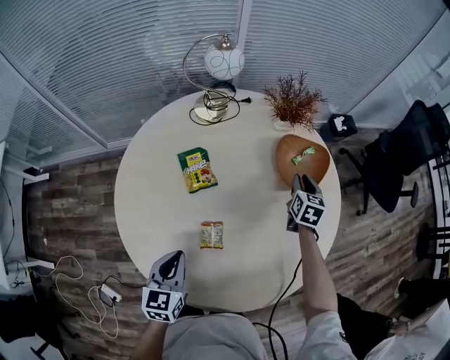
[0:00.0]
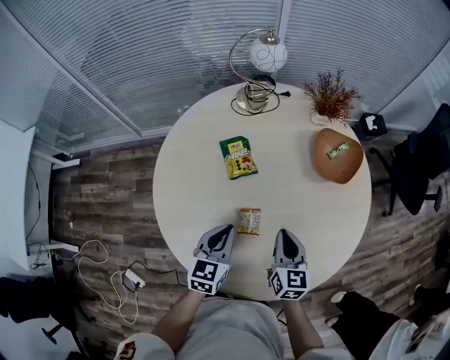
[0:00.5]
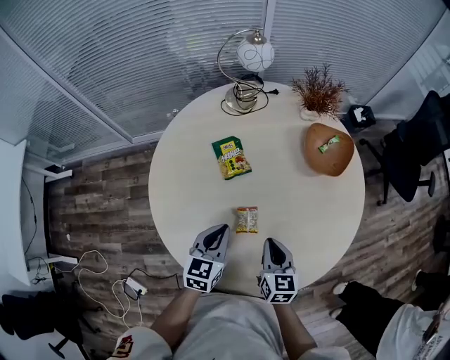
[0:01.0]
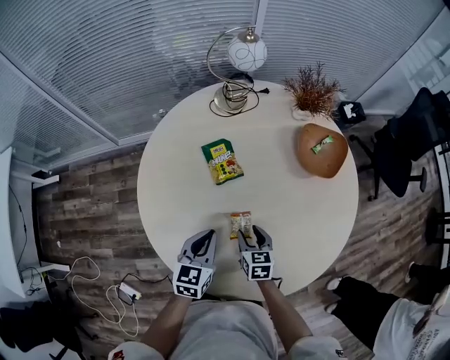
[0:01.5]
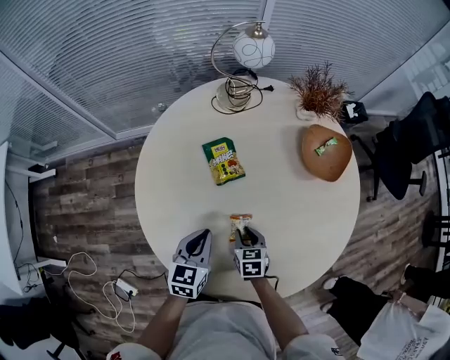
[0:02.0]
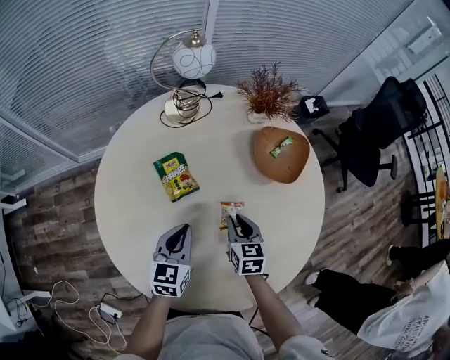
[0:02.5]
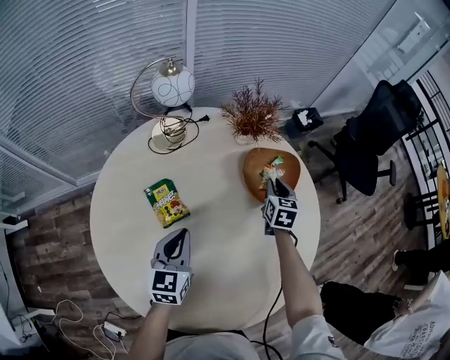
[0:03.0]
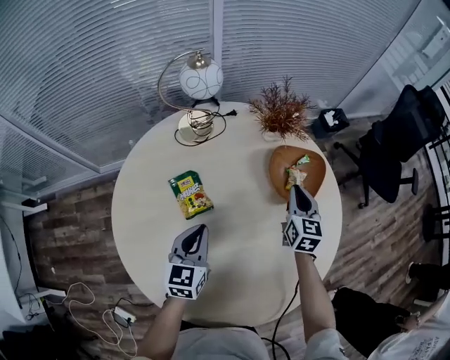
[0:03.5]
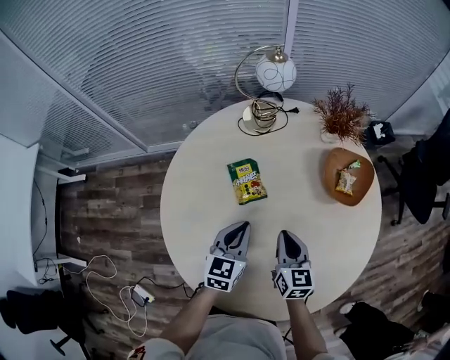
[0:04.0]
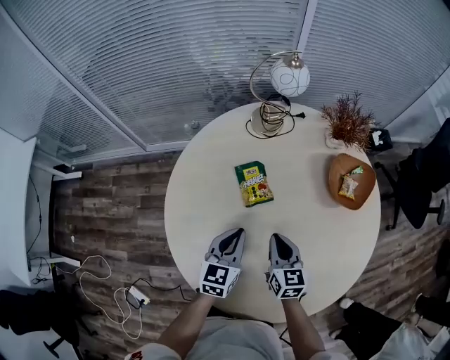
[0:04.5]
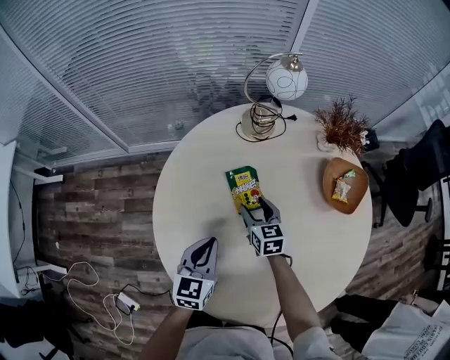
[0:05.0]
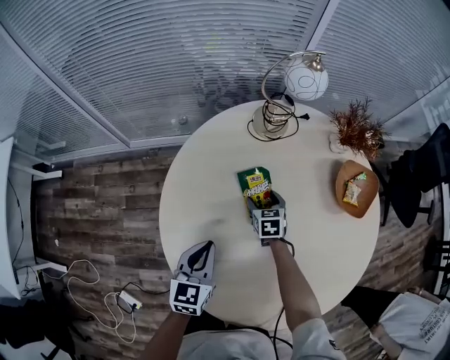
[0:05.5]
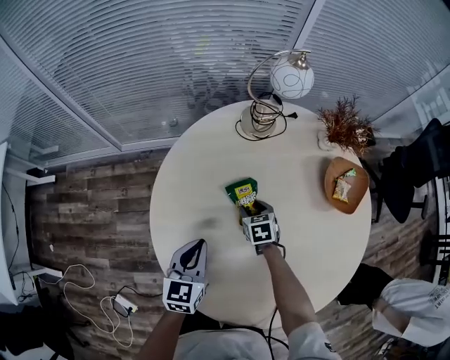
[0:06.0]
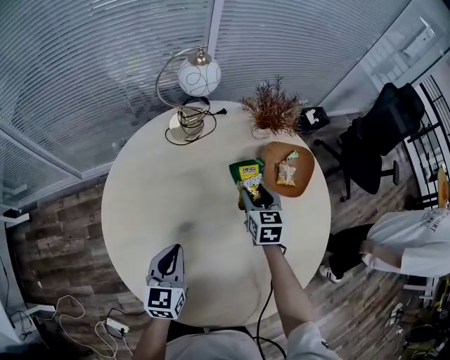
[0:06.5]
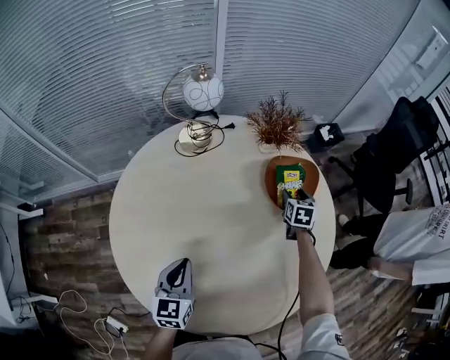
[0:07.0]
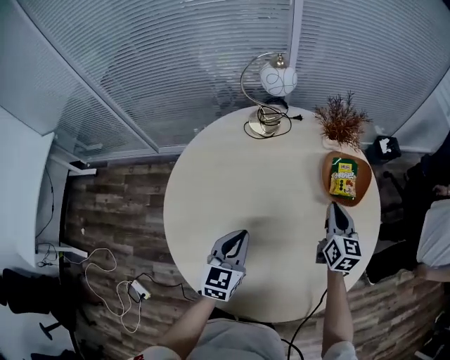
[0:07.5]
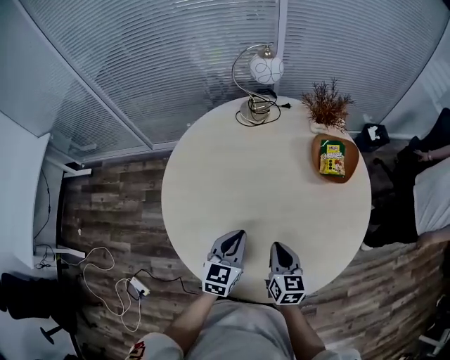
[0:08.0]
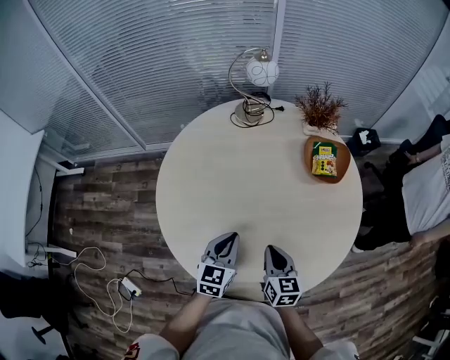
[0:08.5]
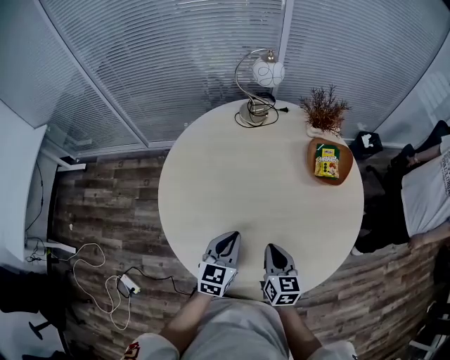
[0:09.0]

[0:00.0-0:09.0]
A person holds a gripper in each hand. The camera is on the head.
0:00.0 to 0:02.0: The left gripper ends up approximately 5 cm from where it was. Meanwhile the right gripper shifts some 35 cm to the left, backward and downward, and rotates some 30 degrees.
0:02.0 to 0:04.5: The right gripper goes about 10 cm upward, reaches approximately 30 cm forward, then returns, and turns by about 30 degrees. The left gripper heads forward, covering roughly 5 cm.
0:04.5 to 0:07.0: The right gripper travels to the right and forward by roughly 35 cm, turns by roughly 30 degrees, and opens; the left gripper travels to the left and back again, about 10 cm each way.
0:07.0 to 0:09.0: The right gripper heads backward and to the left, covering about 40 cm, changes its angle by approximately 30 degrees, and closes; the left gripper moves backward, some 10 cm.

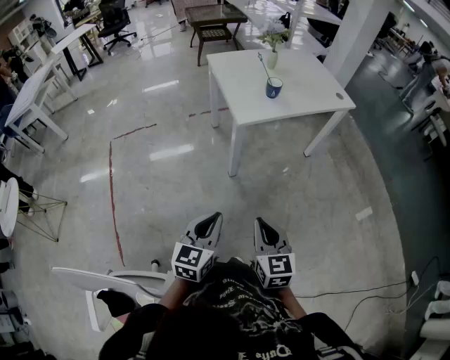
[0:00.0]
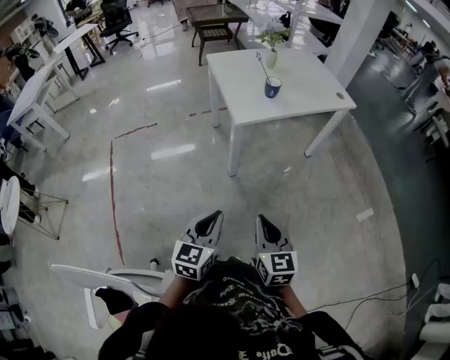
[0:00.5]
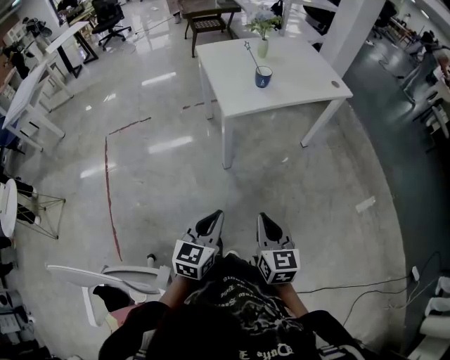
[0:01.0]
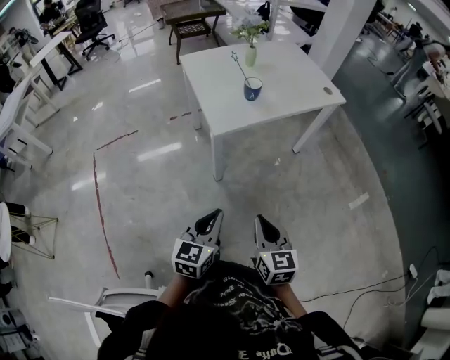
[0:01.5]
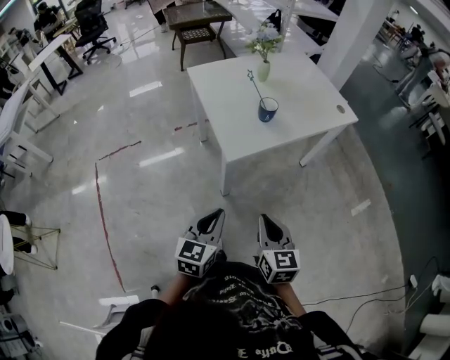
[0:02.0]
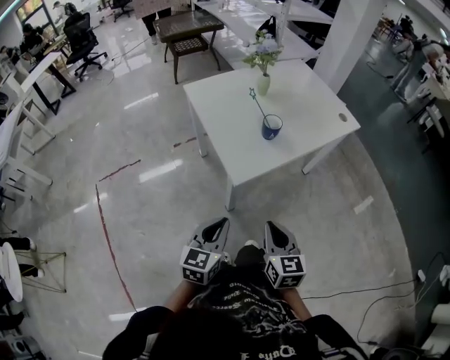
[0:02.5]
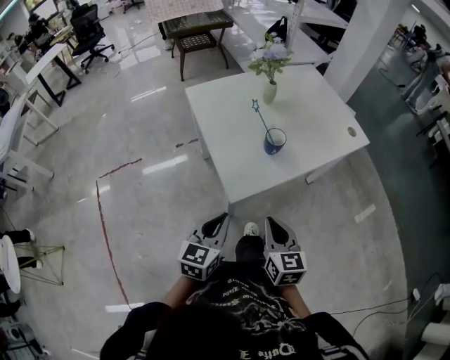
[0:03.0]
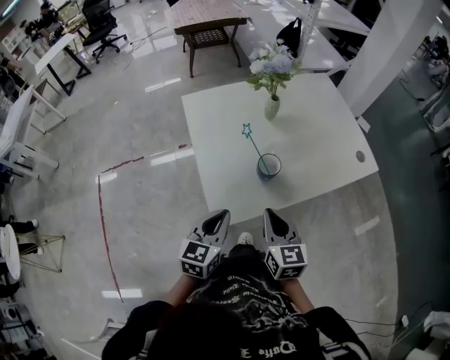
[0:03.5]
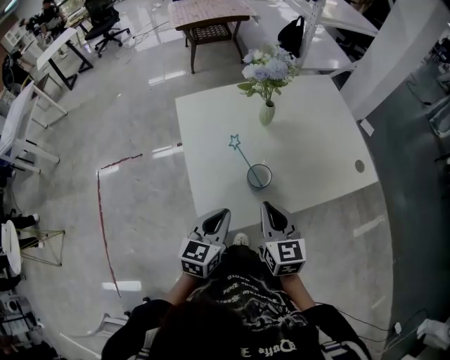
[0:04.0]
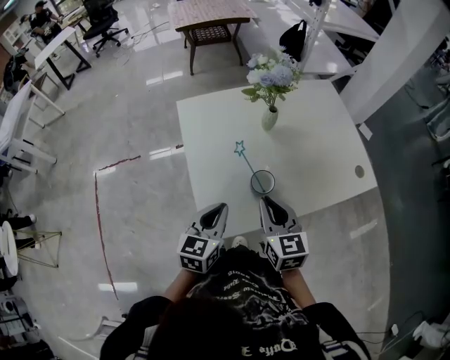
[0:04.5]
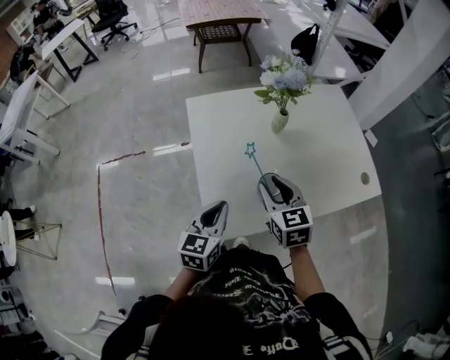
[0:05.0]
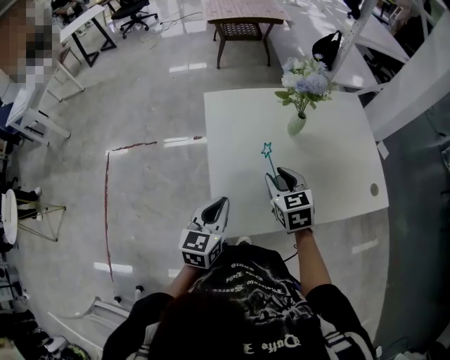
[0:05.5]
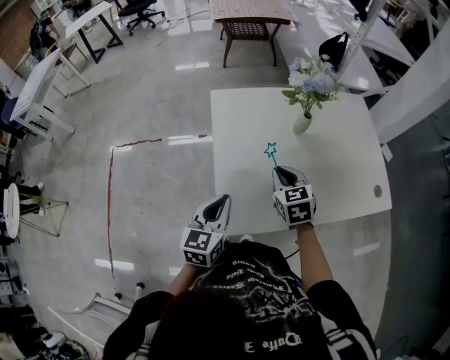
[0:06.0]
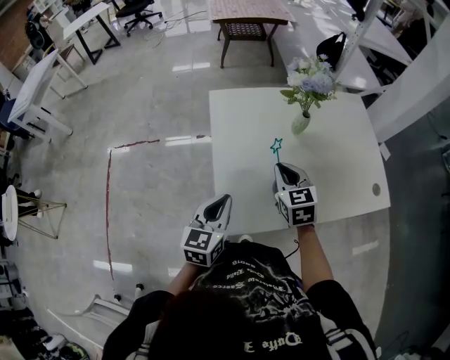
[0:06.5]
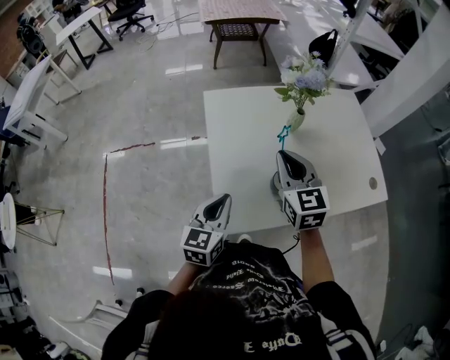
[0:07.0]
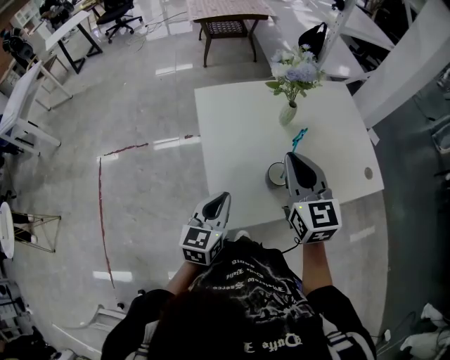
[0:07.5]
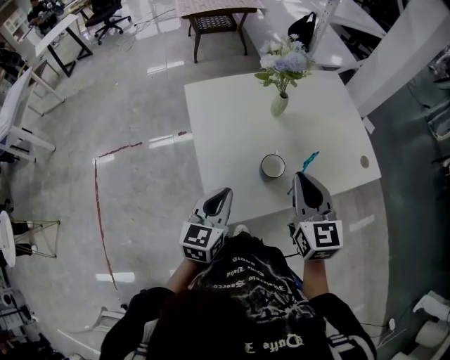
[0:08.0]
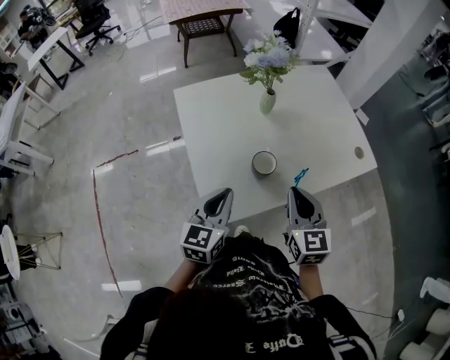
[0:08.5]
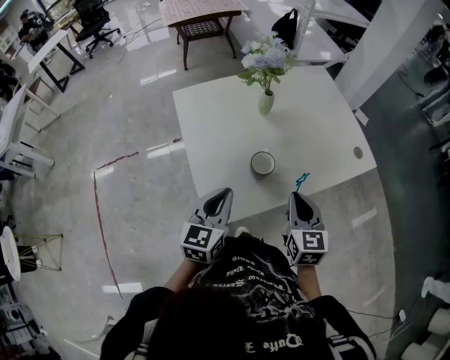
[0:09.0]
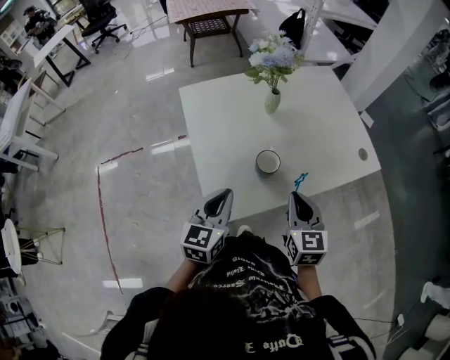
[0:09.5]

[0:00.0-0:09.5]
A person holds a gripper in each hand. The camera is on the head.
0:00.0 to 0:02.0: Both grippers travel together forward, some 30 cm.
0:02.0 to 0:04.0: The pair of grippers is taken forward, roughly 50 cm.
0:04.0 to 0:05.5: The left gripper heads to the left, covering roughly 10 cm. The right gripper is displaced forward and to the left by roughly 15 cm, swivels approximately 20 degrees, and opens its fingers.
0:05.5 to 0:07.5: The right gripper moves upward, about 15 cm, turns by about 30 degrees, and closes up.
0:07.5 to 0:09.5: The right gripper travels downward, to the right and backward by about 20 cm. The left gripper travels to the right by roughly 5 cm.

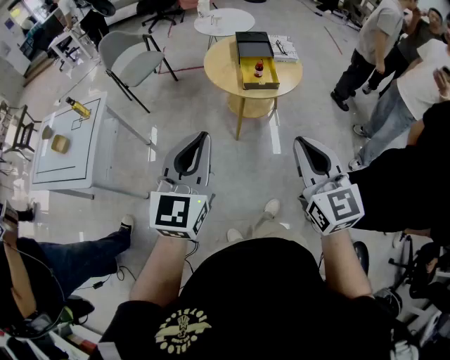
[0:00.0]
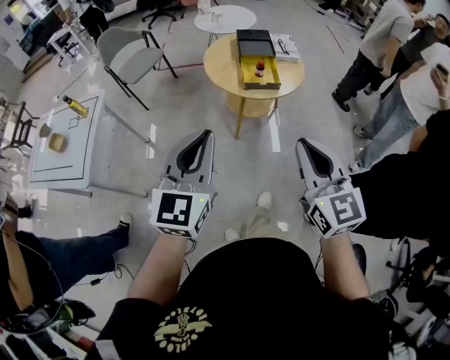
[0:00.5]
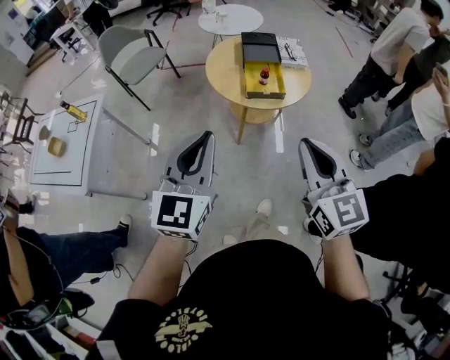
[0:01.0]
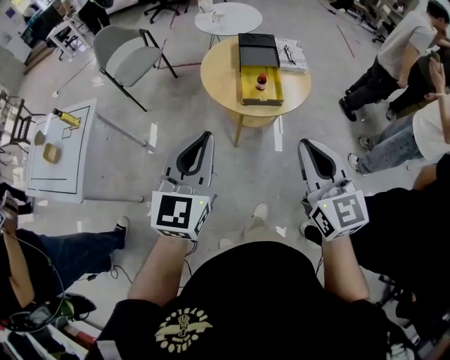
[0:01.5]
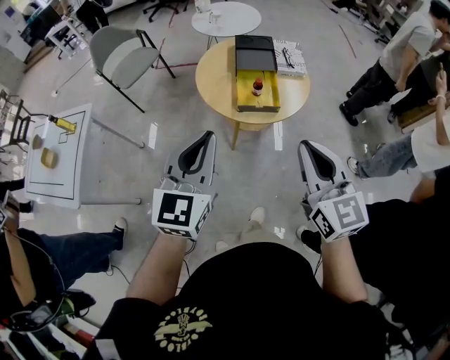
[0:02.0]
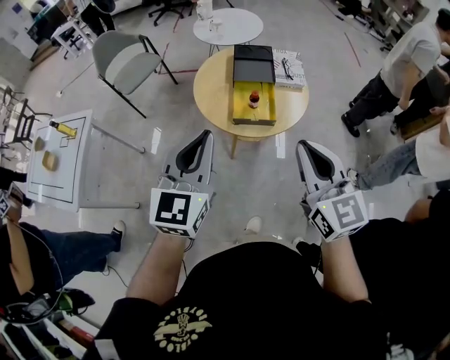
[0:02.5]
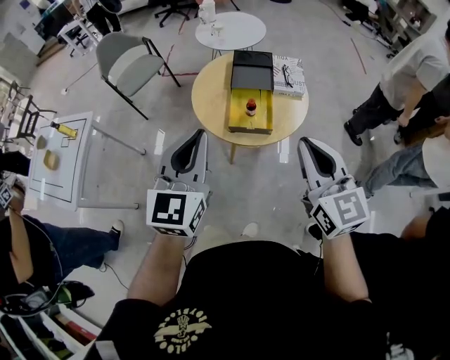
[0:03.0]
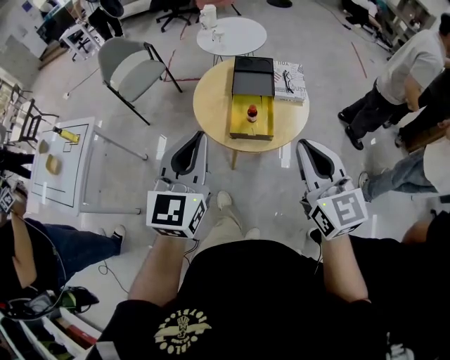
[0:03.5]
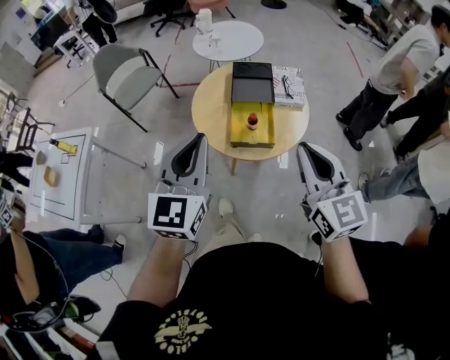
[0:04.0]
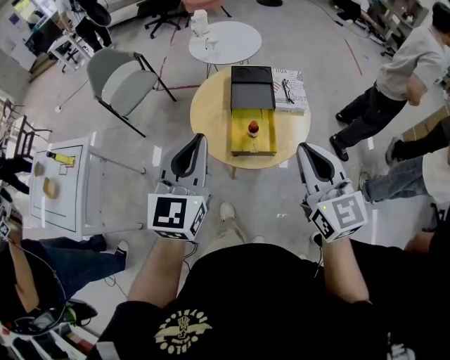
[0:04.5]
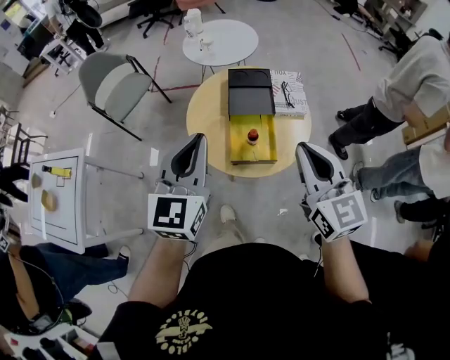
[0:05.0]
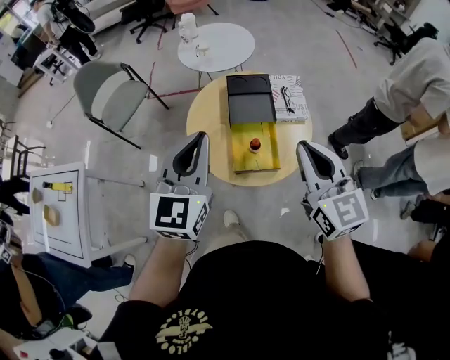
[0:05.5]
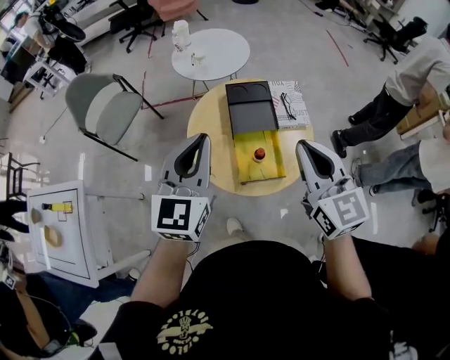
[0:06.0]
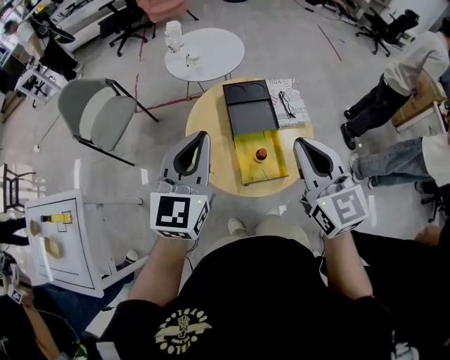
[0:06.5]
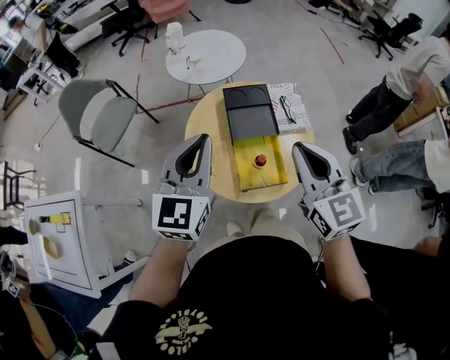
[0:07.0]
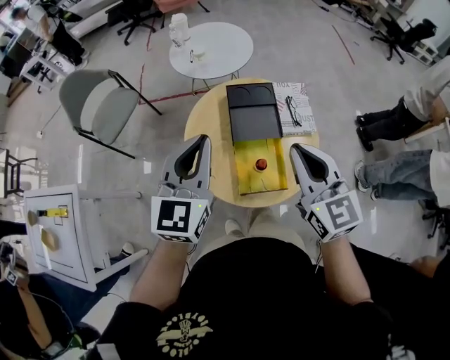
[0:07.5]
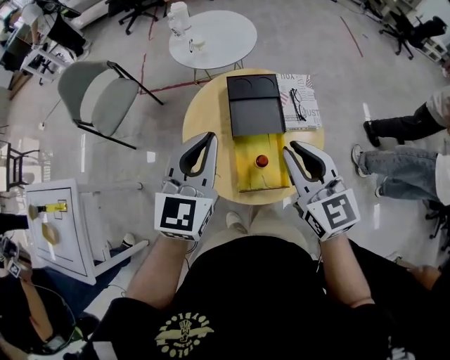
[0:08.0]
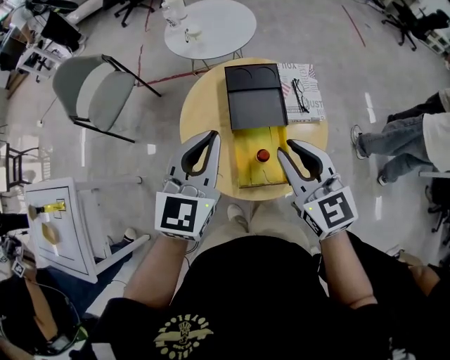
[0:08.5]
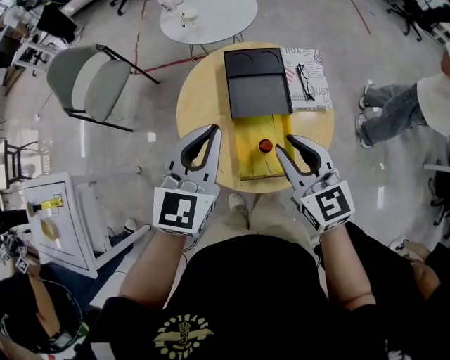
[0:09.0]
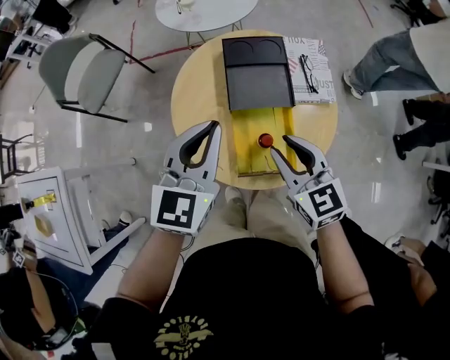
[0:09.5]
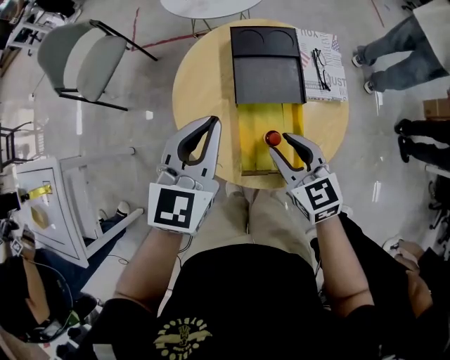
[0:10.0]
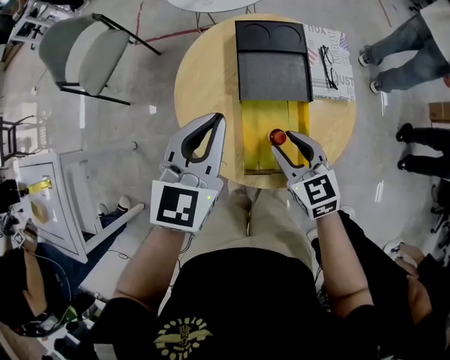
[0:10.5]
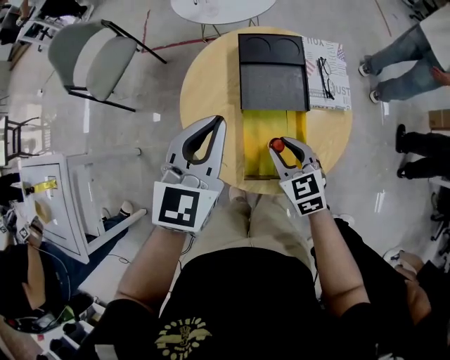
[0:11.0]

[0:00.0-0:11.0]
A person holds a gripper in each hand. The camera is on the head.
0:00.0 to 0:02.0: The right gripper heads forward, covering some 20 cm; the left gripper is displaced forward and to the right by approximately 25 cm.
0:02.0 to 0:03.5: The two grippers go some 10 cm forward and to the right.
0:03.5 to 0:05.5: The grippers both shift forward by roughly 20 cm.
0:05.5 to 0:07.5: The two grippers go roughly 10 cm forward.
0:07.5 to 0:09.0: The grippers both shift downward by approximately 10 cm. The right gripper opens its fingers.
0:09.0 to 0:11.0: The right gripper goes roughly 15 cm downward.
